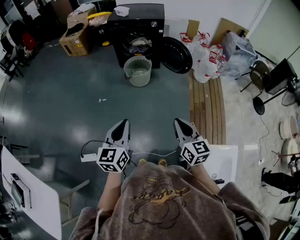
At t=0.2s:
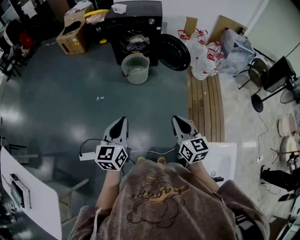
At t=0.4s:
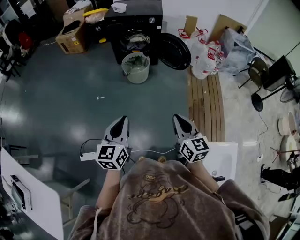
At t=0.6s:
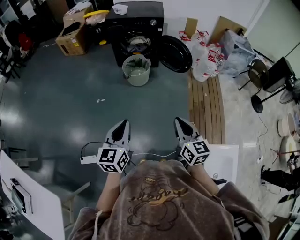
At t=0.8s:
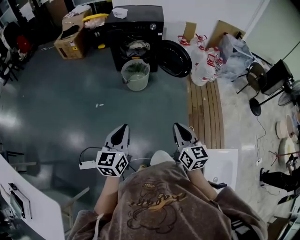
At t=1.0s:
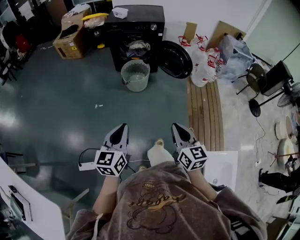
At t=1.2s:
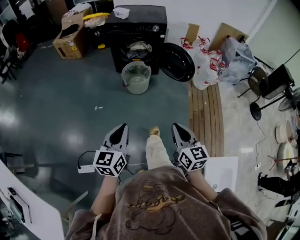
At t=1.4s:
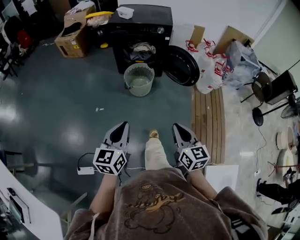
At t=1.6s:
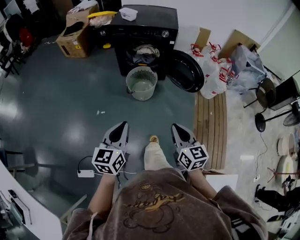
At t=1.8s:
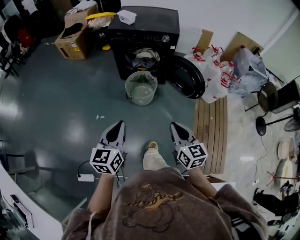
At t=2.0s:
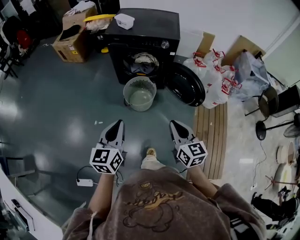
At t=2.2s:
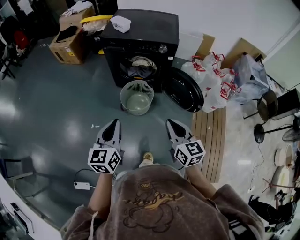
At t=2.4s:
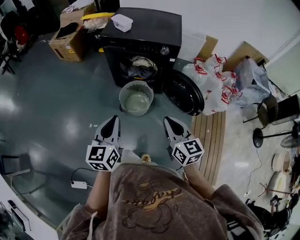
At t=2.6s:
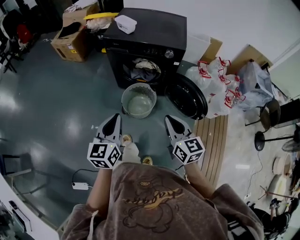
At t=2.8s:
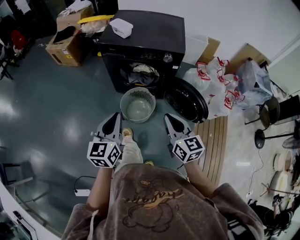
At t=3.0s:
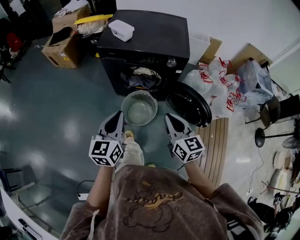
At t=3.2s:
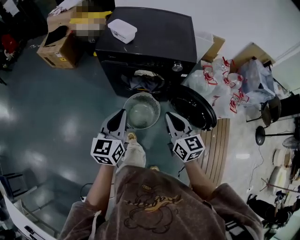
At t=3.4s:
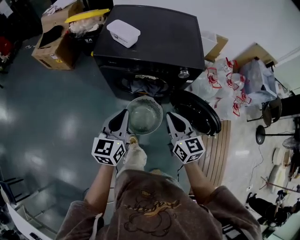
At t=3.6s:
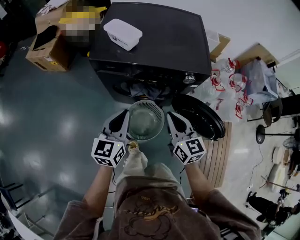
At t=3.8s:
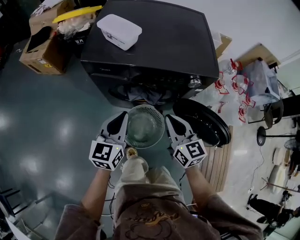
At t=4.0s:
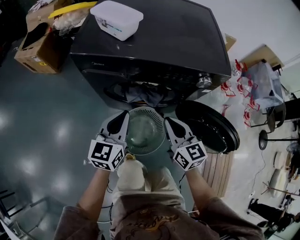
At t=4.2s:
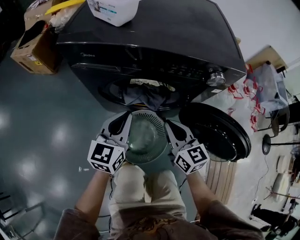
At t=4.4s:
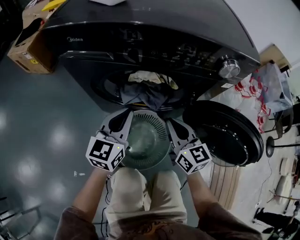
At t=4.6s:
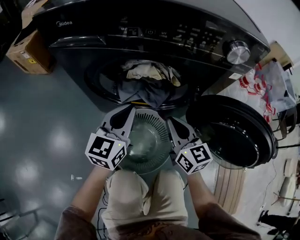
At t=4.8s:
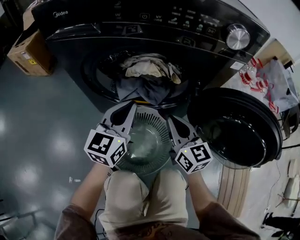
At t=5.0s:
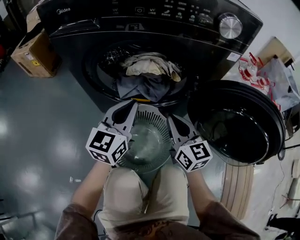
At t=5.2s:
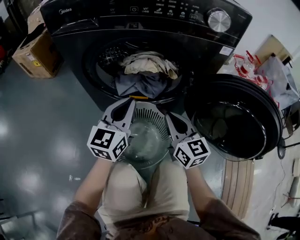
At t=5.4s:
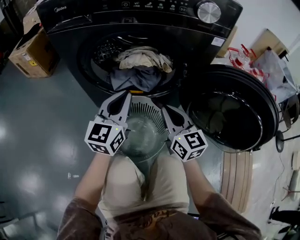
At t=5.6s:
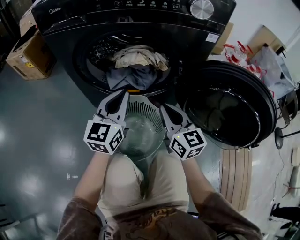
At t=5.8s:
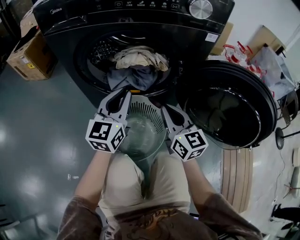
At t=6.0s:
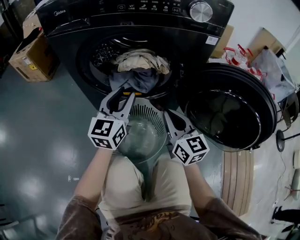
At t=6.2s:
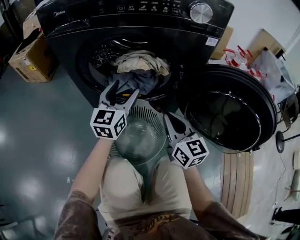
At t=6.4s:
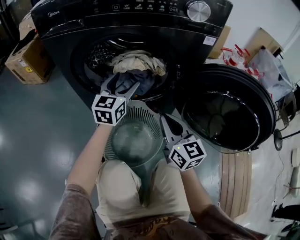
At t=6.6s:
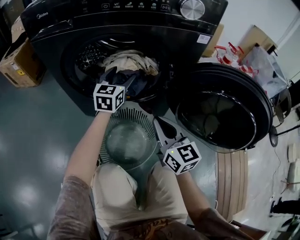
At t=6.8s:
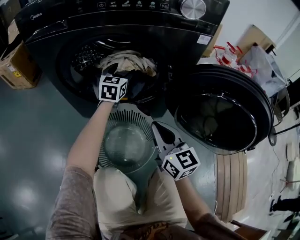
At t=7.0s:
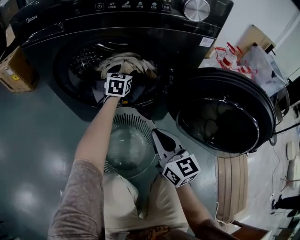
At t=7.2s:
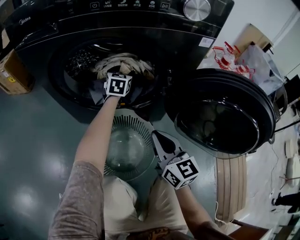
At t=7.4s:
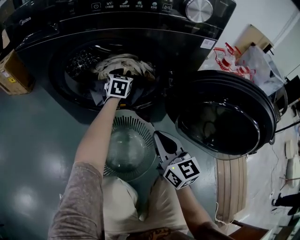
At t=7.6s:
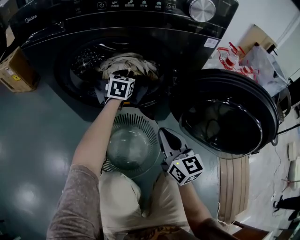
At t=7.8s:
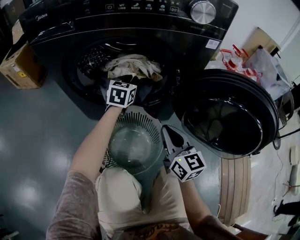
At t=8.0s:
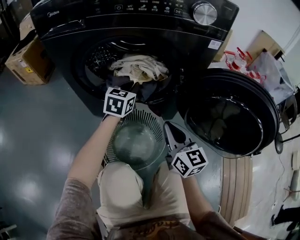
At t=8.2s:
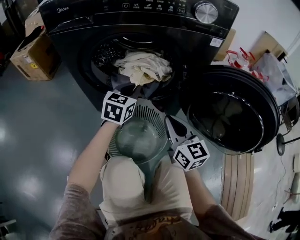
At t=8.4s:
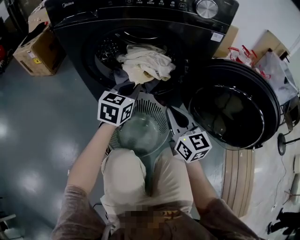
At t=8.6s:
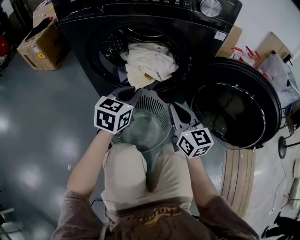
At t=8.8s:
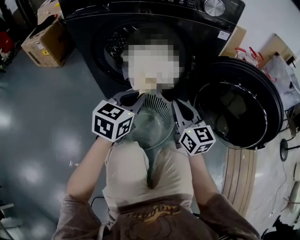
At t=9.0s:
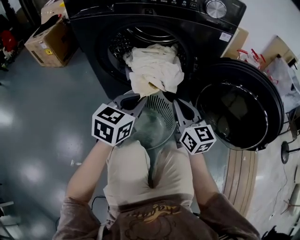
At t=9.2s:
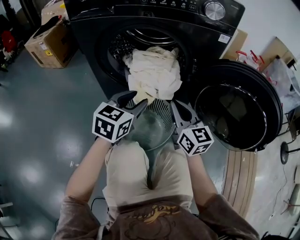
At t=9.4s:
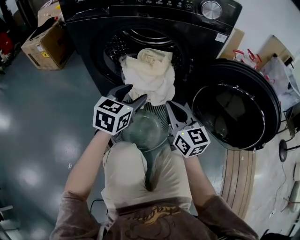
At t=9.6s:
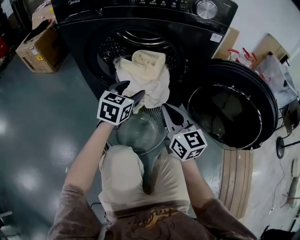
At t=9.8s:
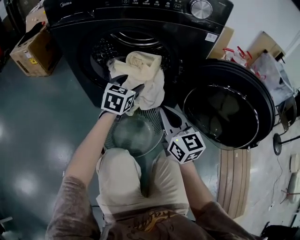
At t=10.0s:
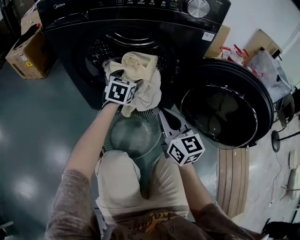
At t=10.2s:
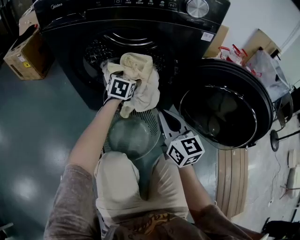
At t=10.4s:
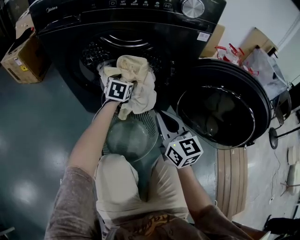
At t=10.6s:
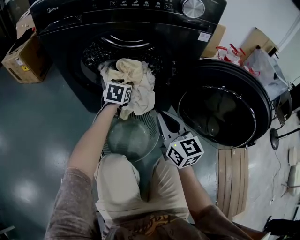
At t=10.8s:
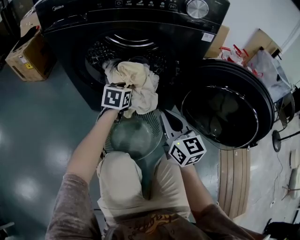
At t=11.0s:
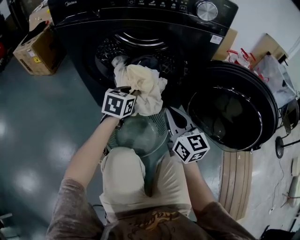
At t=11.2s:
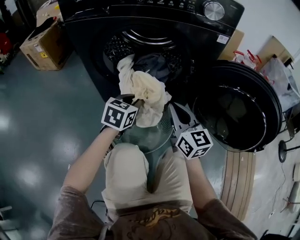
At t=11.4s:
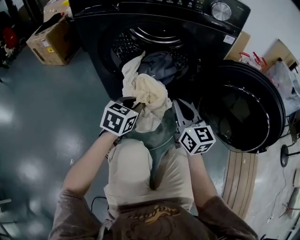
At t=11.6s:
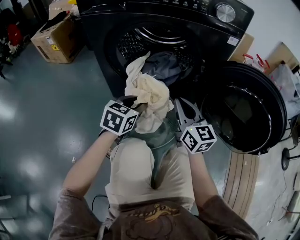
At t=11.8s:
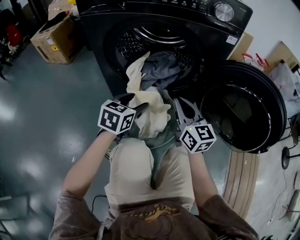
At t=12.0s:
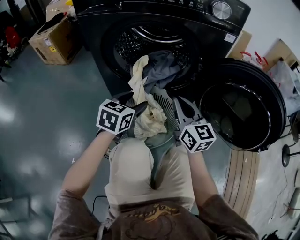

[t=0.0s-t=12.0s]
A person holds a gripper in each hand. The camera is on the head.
t=0.0s to t=1.6s: Both grippers travel together forward, some 25 cm.
t=1.6s to t=3.0s: The pair of grippers is taken forward, approximately 40 cm.
t=3.0s to t=4.4s: Both grippers move downward and forward, some 50 cm.
t=4.4s to t=6.0s: The right gripper heads downward, backward and to the right, covering roughly 10 cm; the left gripper heads downward and to the right, covering approximately 10 cm.
t=6.0s to t=7.6s: The left gripper travels forward and downward by approximately 25 cm, swivels roughly 30 degrees, and opens, then closes again.
t=7.6s to t=9.0s: The left gripper moves backward, roughly 30 cm.
t=9.0s to t=10.4s: The left gripper moves forward and downward, some 25 cm, and opens.
t=10.4s to t=12.0s: The left gripper travels backward by about 20 cm, and closes and opens again.

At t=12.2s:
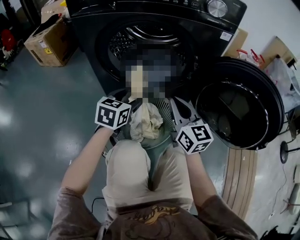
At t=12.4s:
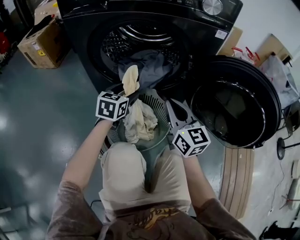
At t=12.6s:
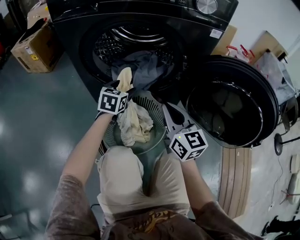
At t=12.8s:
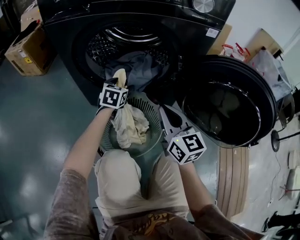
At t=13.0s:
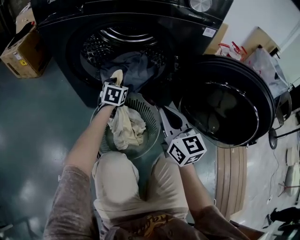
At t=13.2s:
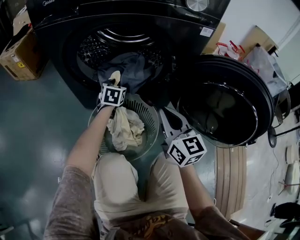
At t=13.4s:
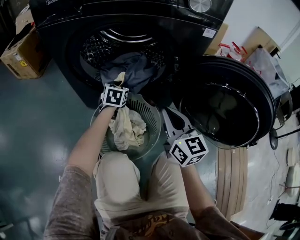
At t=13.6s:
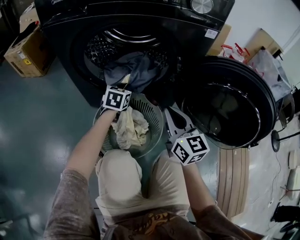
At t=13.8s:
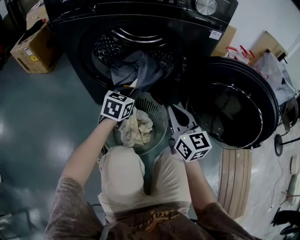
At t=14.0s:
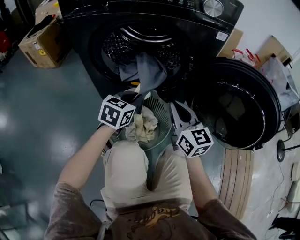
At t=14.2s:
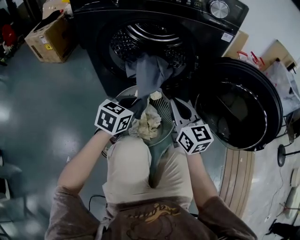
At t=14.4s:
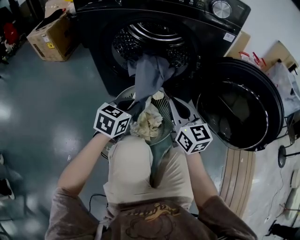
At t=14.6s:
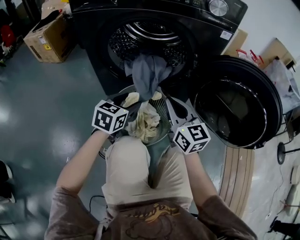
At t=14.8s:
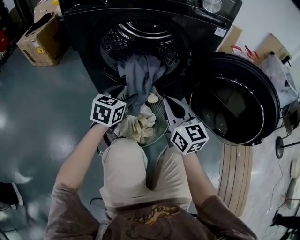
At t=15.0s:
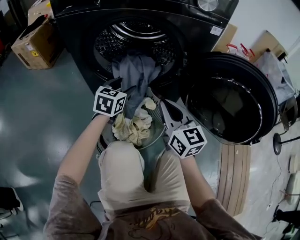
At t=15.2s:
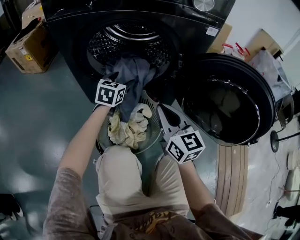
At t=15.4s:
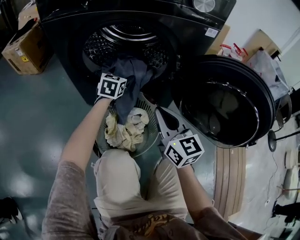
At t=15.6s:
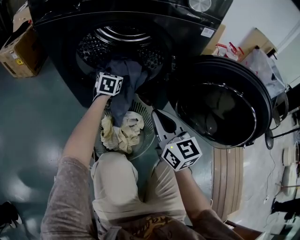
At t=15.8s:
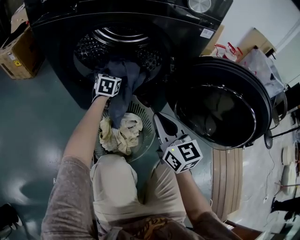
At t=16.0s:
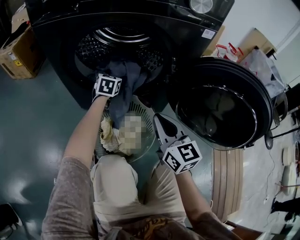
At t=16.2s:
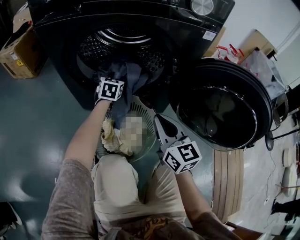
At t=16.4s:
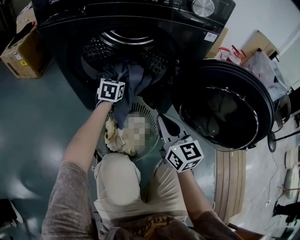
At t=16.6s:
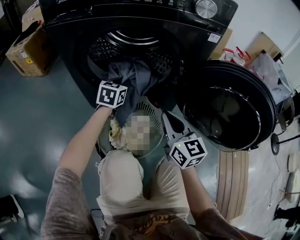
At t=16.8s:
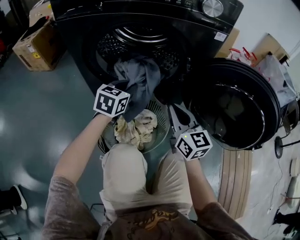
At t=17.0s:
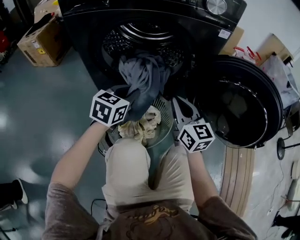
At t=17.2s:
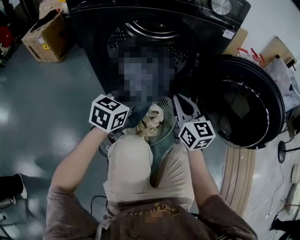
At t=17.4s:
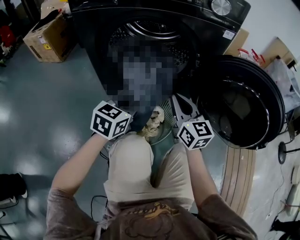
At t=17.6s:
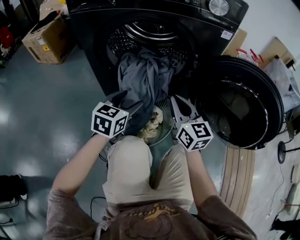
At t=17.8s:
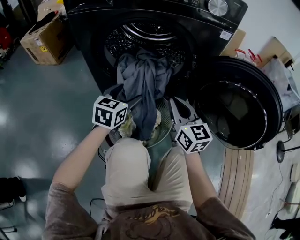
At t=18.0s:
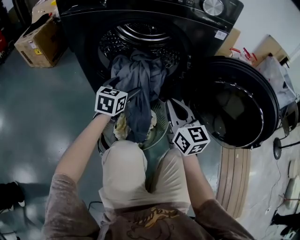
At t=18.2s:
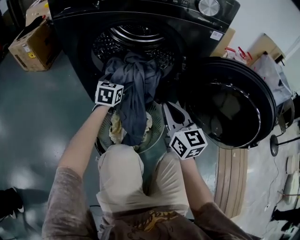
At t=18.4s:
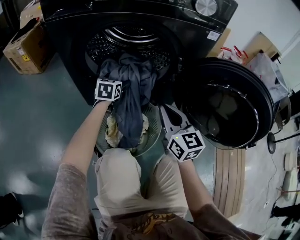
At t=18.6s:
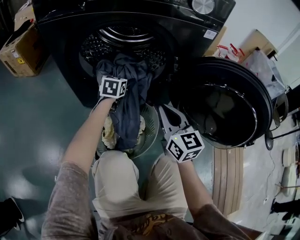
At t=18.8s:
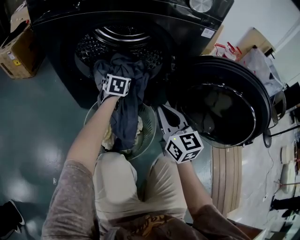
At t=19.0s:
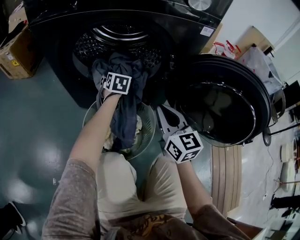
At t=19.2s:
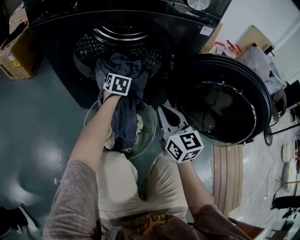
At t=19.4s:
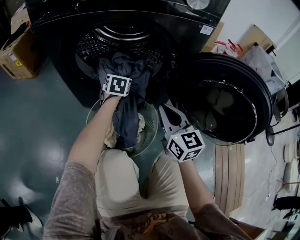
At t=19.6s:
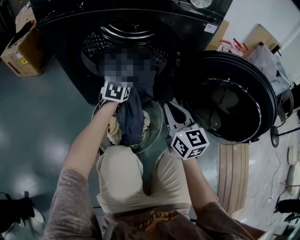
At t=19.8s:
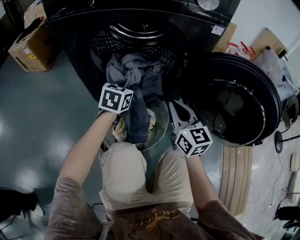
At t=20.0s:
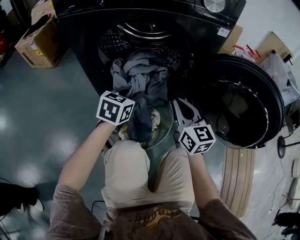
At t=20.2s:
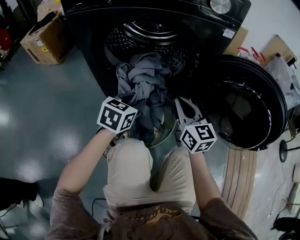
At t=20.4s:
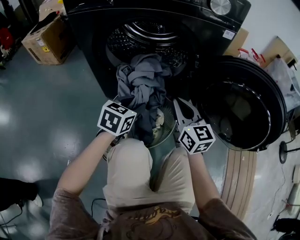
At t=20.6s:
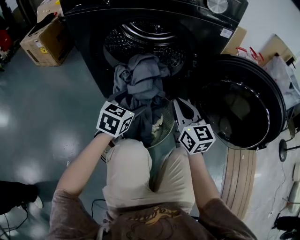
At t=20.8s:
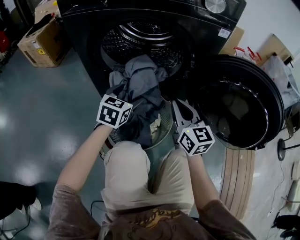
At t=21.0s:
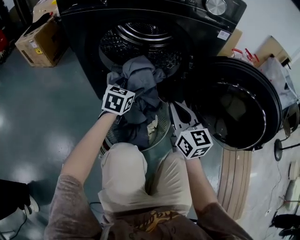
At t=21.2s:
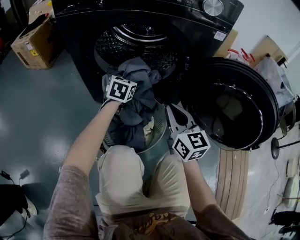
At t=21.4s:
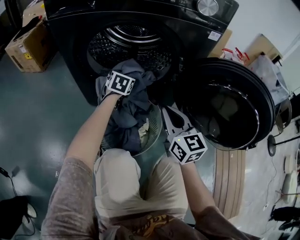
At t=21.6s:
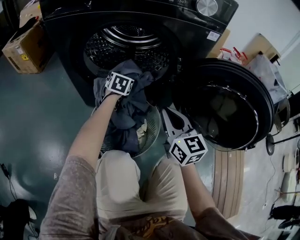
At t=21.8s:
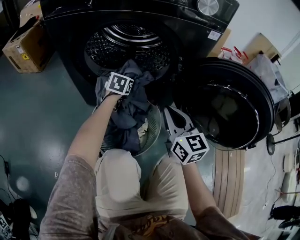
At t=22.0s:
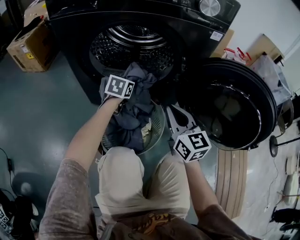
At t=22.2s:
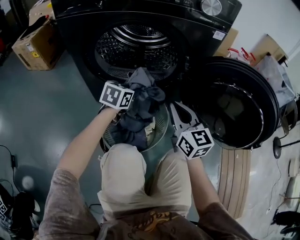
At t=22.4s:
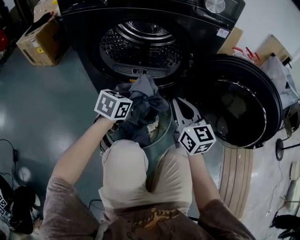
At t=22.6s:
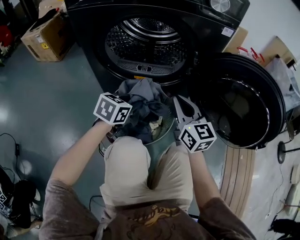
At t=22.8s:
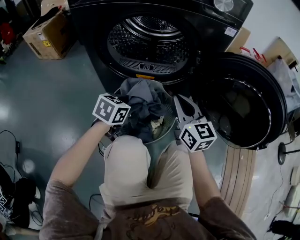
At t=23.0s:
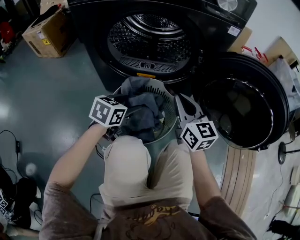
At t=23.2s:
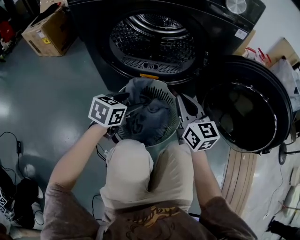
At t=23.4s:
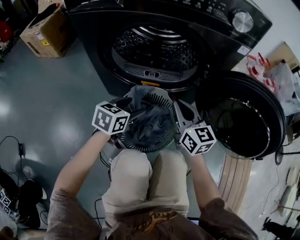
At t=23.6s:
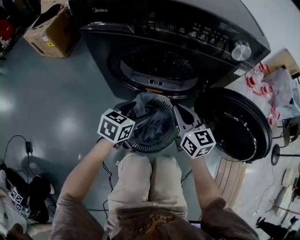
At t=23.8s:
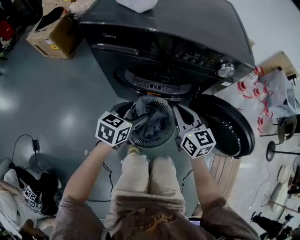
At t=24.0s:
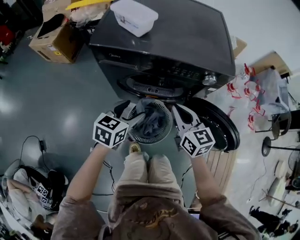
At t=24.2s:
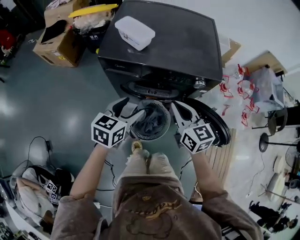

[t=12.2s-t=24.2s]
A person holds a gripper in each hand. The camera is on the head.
t=12.2s to t=13.8s: The left gripper moves forward and to the right, approximately 10 cm, and closes up.
t=13.8s to t=15.2s: The left gripper goes backward and returns, roughly 10 cm each way, and opens.
t=15.2s to t=16.6s: The left gripper reaches some 10 cm forward, then returns, and closes.
t=16.6s to t=18.2s: The left gripper travels backward and back again, roughly 20 cm each way, and opens.
t=18.2s to t=19.8s: The left gripper shifts about 5 cm backward, and closes.
t=19.8s to t=21.2s: The left gripper shifts some 5 cm forward, and opens up.
t=21.2s to t=22.6s: The left gripper is displaced backward by roughly 15 cm, changes its angle by about 20 degrees, and closes.
t=22.6s to t=24.2s: Both grippers travel together upward, roughly 40 cm. The left gripper opens.
